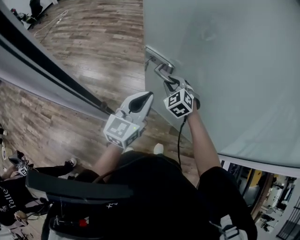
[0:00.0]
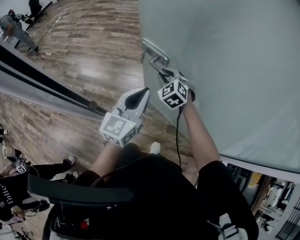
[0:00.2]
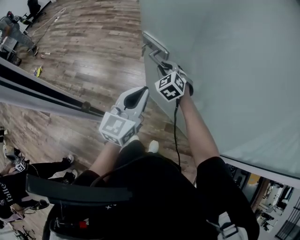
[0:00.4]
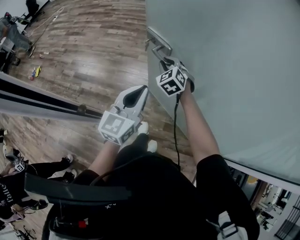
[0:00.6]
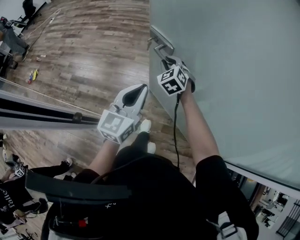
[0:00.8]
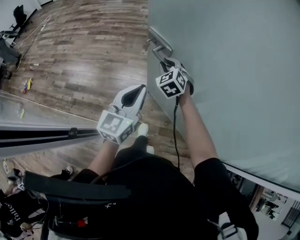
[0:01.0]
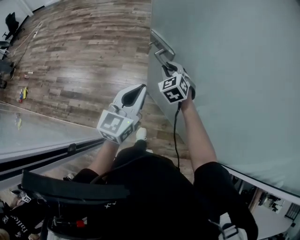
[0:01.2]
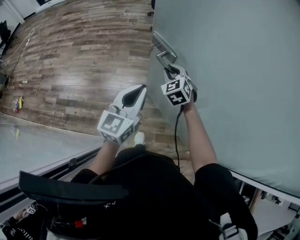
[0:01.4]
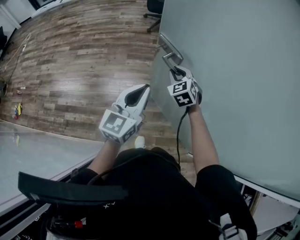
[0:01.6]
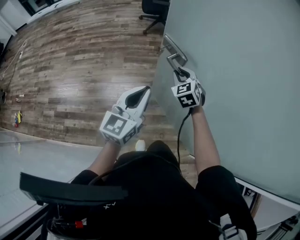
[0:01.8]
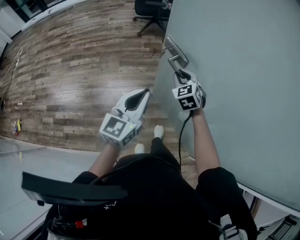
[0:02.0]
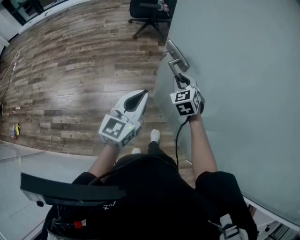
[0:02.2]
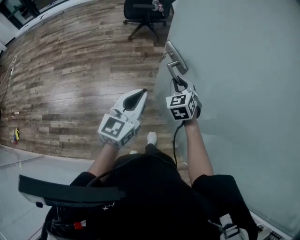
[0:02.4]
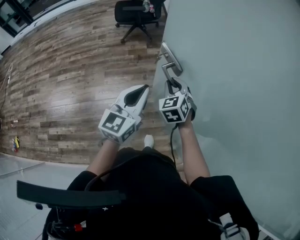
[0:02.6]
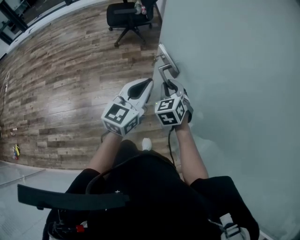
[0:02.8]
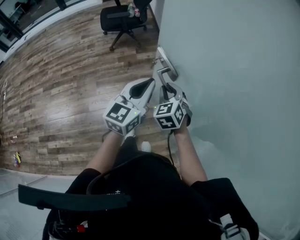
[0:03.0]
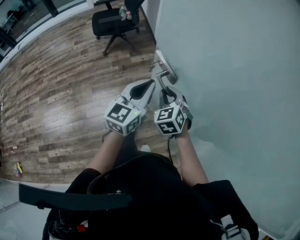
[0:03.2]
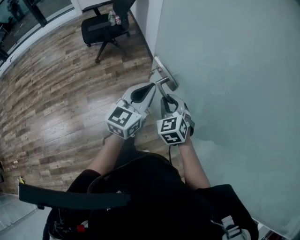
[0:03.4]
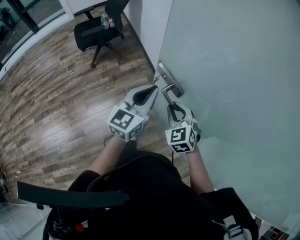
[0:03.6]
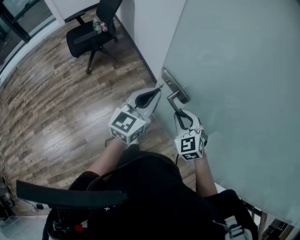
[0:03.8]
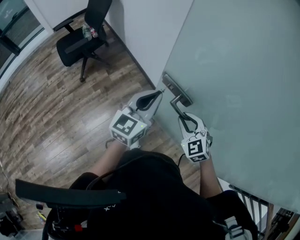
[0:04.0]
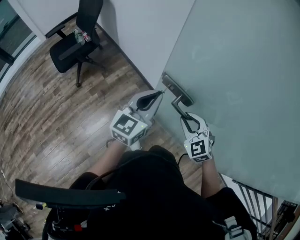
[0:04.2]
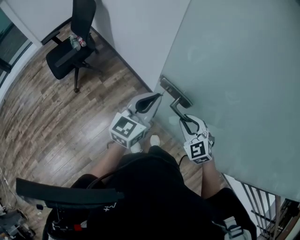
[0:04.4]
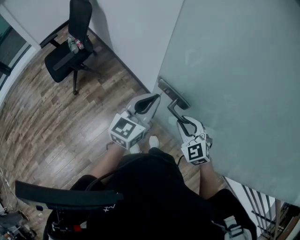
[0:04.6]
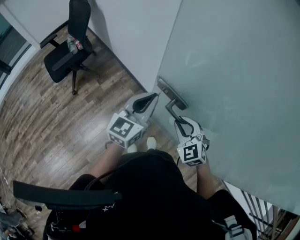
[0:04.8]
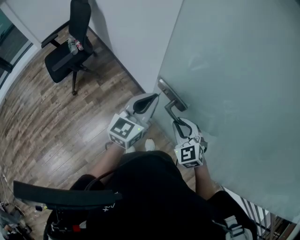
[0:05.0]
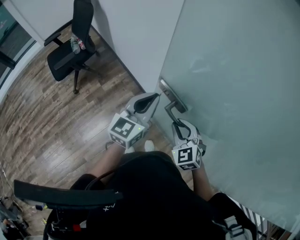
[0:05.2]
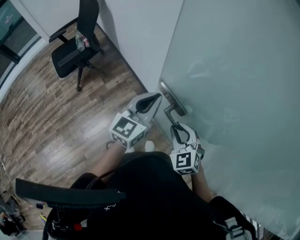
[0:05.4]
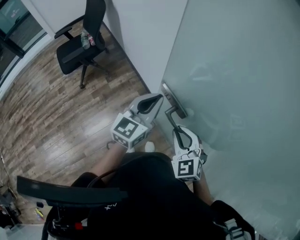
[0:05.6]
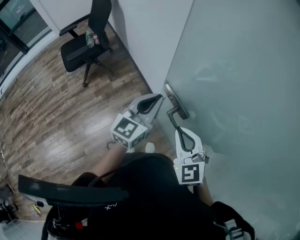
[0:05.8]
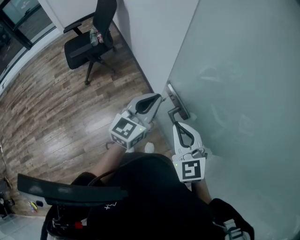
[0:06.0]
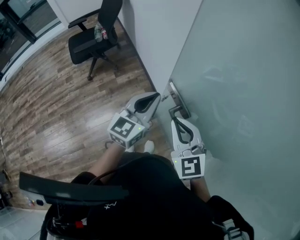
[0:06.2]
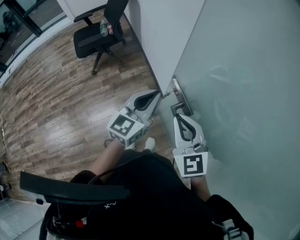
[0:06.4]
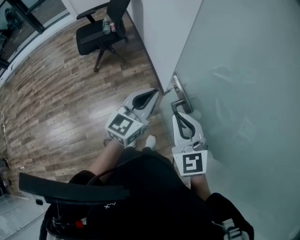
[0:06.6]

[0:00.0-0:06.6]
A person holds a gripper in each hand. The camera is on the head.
0:00.0 to 0:01.6: The two grippers go roughly 30 cm forward and to the right. The right gripper swivels approximately 20 degrees.
0:01.6 to 0:03.2: Both grippers move forward and to the right, about 30 cm. The left gripper rotates roughly 20 degrees. The right gripper rotates some 20 degrees.
0:03.2 to 0:05.0: The right gripper shifts some 10 cm to the right and forward; the left gripper travels forward by about 15 cm, and rotates roughly 30 degrees.
0:05.0 to 0:06.6: The right gripper travels upward by approximately 10 cm, and rotates about 30 degrees.

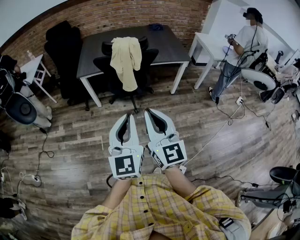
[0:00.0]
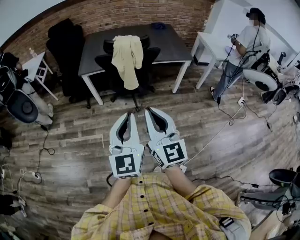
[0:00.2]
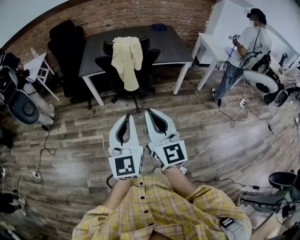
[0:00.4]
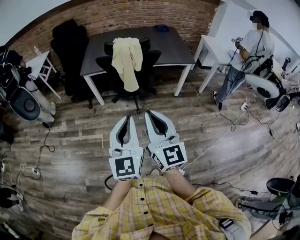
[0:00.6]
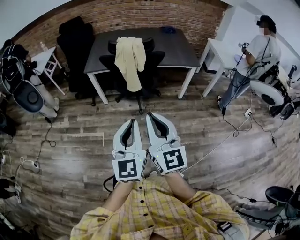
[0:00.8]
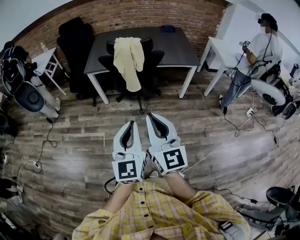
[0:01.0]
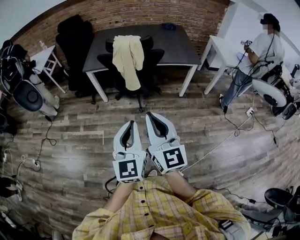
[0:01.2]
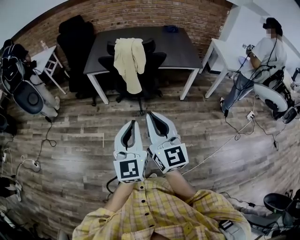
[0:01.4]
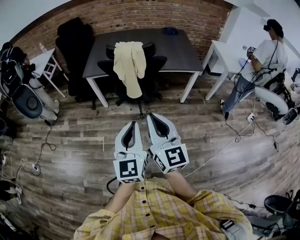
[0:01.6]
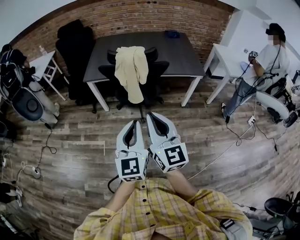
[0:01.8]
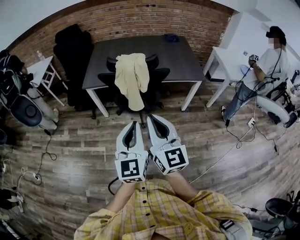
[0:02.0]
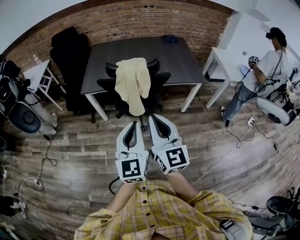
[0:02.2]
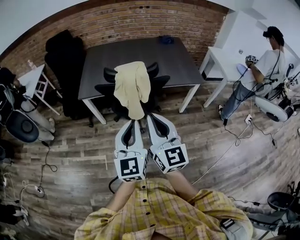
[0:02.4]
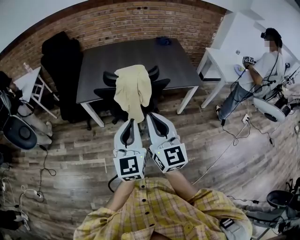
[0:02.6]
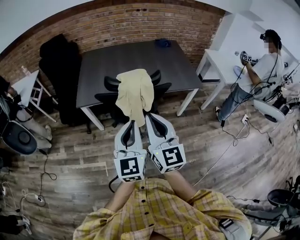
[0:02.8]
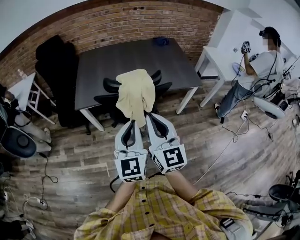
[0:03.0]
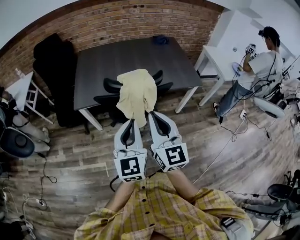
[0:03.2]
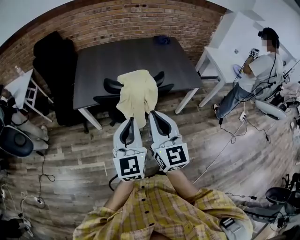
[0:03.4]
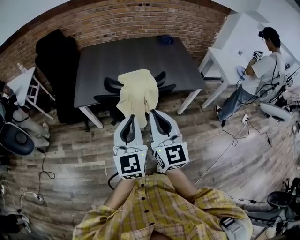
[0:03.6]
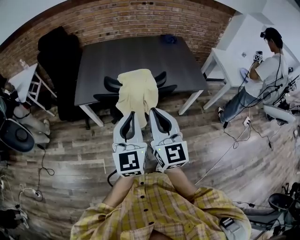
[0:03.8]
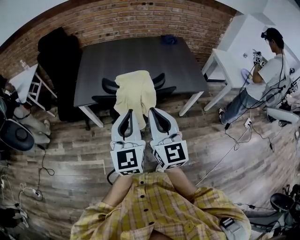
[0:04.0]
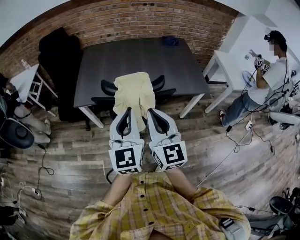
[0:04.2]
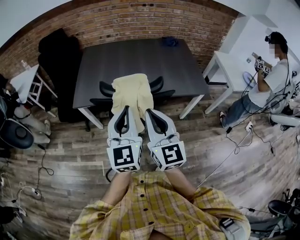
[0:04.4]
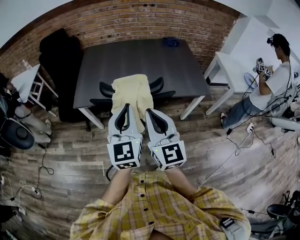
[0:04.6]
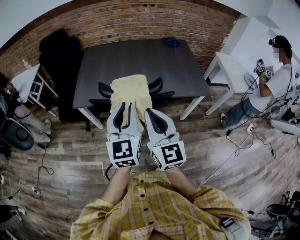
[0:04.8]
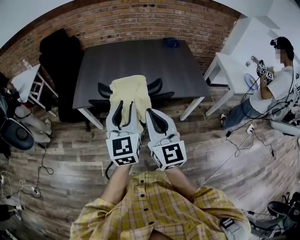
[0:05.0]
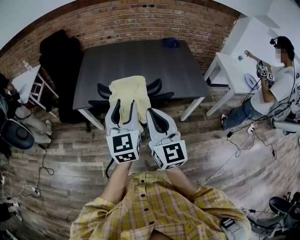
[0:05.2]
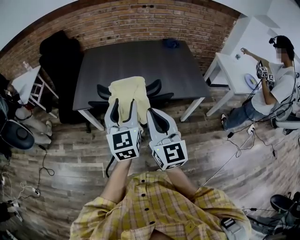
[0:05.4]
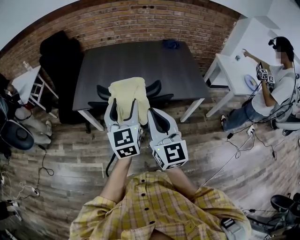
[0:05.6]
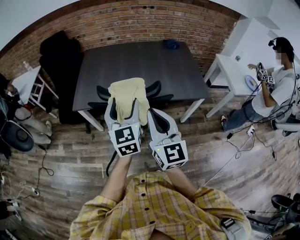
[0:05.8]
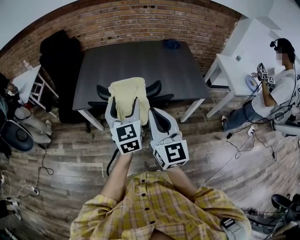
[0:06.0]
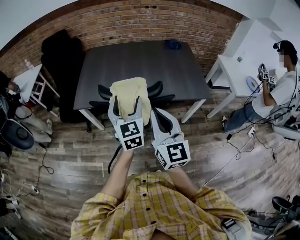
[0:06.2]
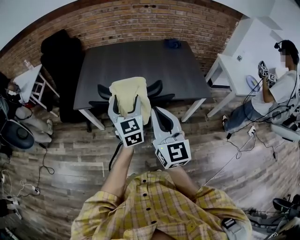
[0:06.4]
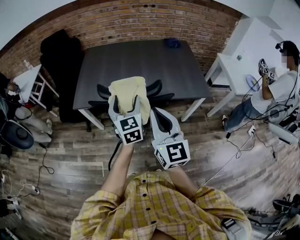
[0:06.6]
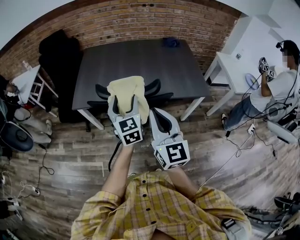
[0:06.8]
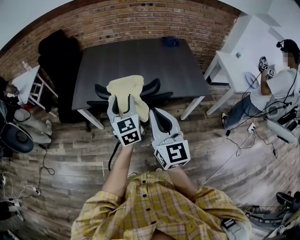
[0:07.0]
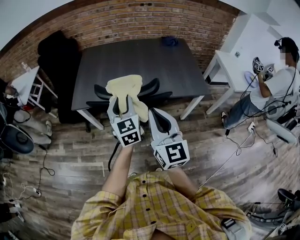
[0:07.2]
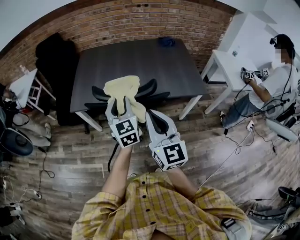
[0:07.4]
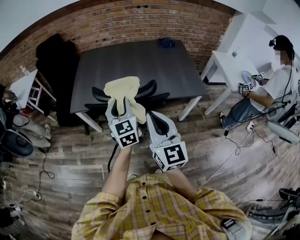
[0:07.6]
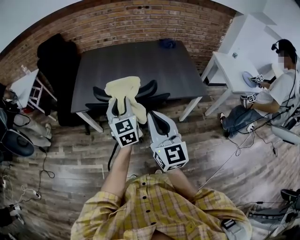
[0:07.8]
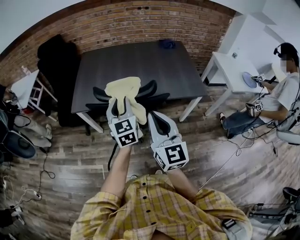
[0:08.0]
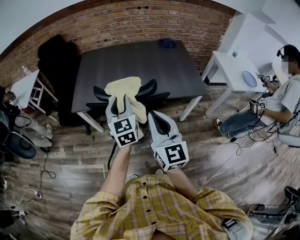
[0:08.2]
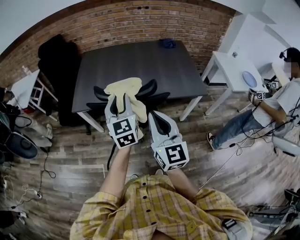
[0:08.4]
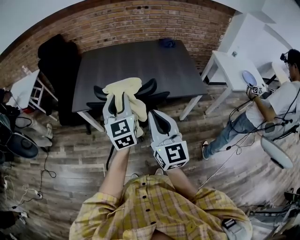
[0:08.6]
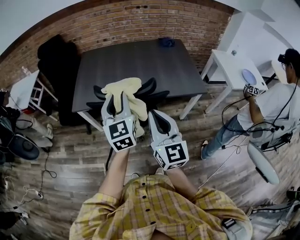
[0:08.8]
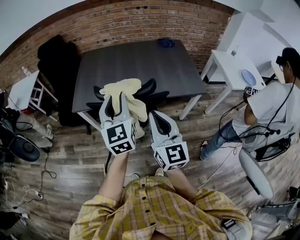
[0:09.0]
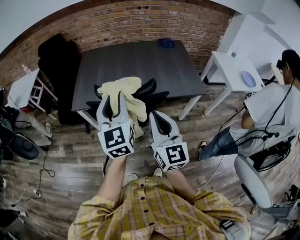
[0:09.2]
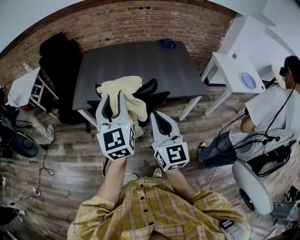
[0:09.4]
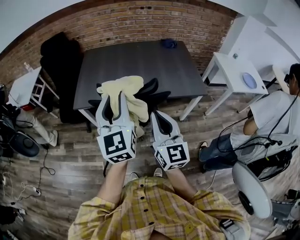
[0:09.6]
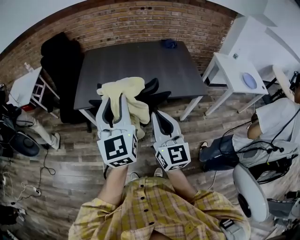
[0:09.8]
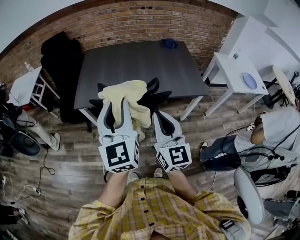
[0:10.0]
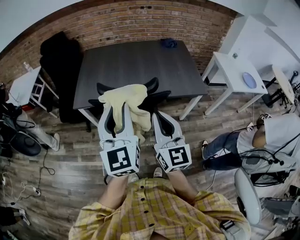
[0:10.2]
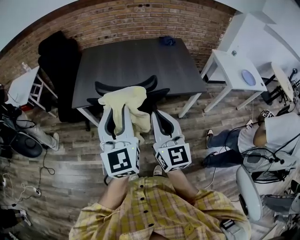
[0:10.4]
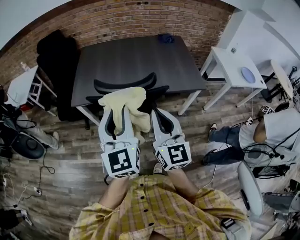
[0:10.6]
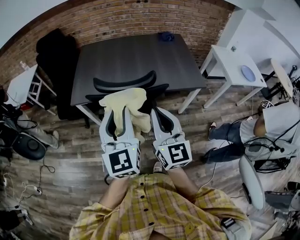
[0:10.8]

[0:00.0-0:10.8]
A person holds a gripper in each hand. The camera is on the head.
0:00.0 to 0:01.6: The grippers both shift to the right and forward by roughly 10 cm.
0:01.6 to 0:03.0: Both grippers travel together forward, some 25 cm.
0:03.0 to 0:04.6: Both grippers travel together forward, about 10 cm.
0:04.6 to 0:06.2: The left gripper travels forward by roughly 10 cm, and opens up.
0:06.2 to 0:07.8: The left gripper closes up.
0:07.8 to 0:09.2: The left gripper moves upward and backward, about 15 cm.
0:09.2 to 0:10.8: The left gripper travels backward by approximately 10 cm.

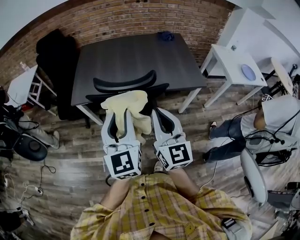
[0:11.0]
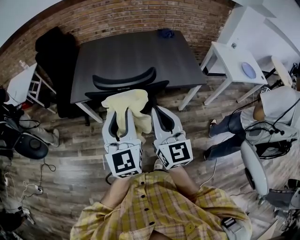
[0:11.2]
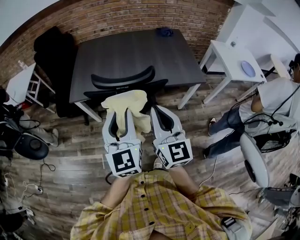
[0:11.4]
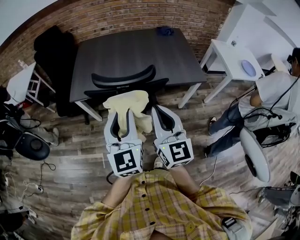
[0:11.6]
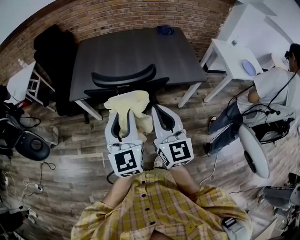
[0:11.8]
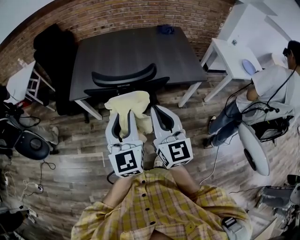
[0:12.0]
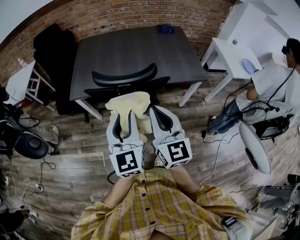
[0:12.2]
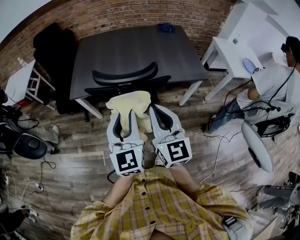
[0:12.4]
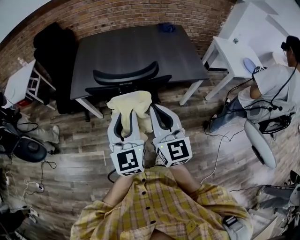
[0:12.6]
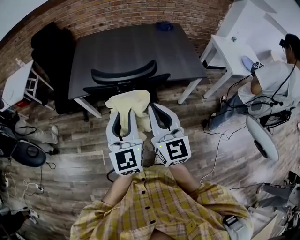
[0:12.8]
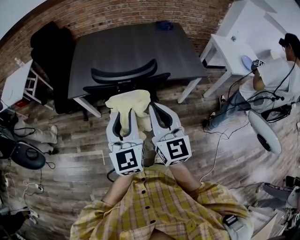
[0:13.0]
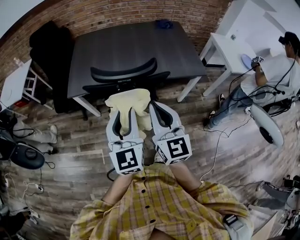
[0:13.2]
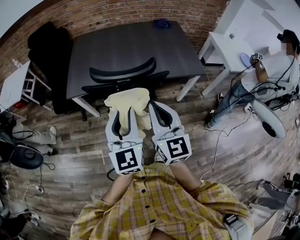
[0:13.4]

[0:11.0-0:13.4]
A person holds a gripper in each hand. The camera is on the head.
0:11.0 to 0:13.4: There are only small adjustments of the grippers.

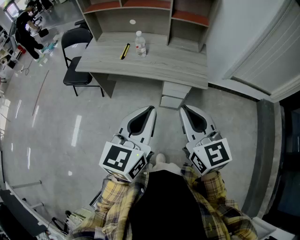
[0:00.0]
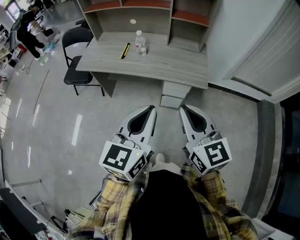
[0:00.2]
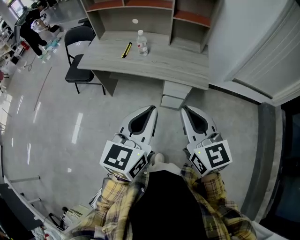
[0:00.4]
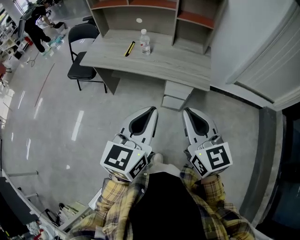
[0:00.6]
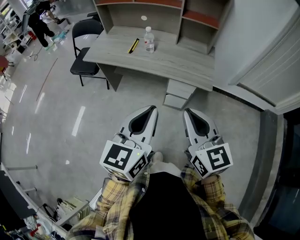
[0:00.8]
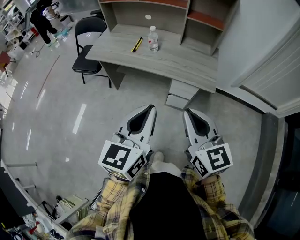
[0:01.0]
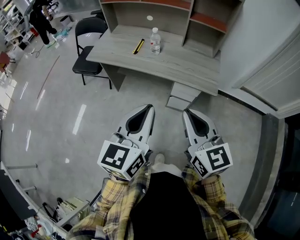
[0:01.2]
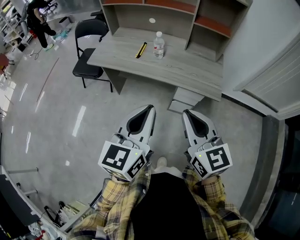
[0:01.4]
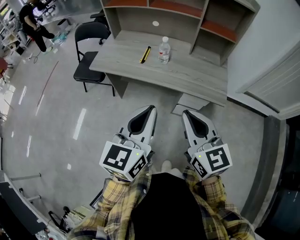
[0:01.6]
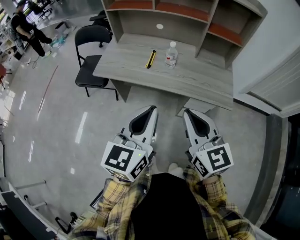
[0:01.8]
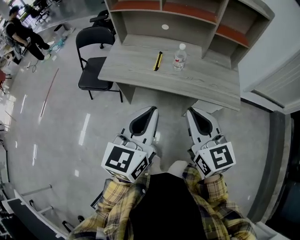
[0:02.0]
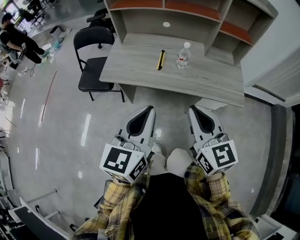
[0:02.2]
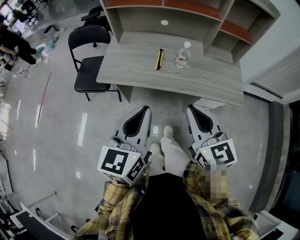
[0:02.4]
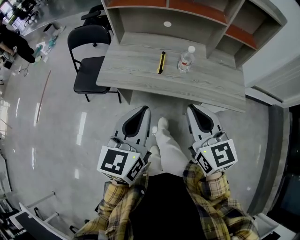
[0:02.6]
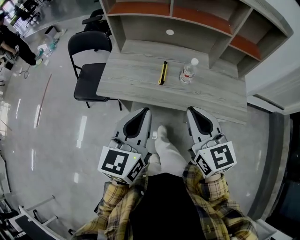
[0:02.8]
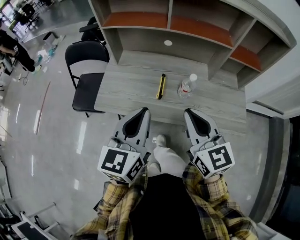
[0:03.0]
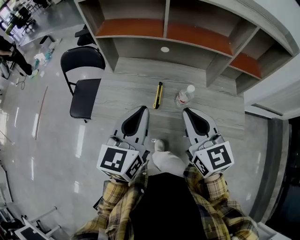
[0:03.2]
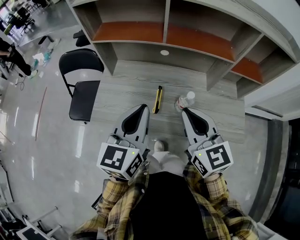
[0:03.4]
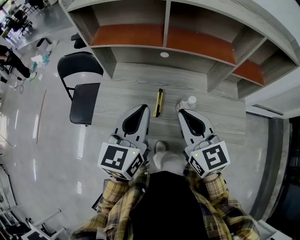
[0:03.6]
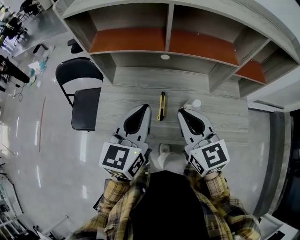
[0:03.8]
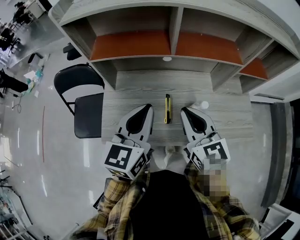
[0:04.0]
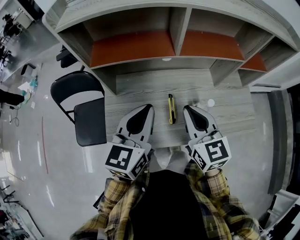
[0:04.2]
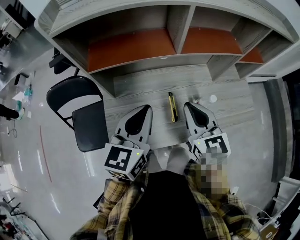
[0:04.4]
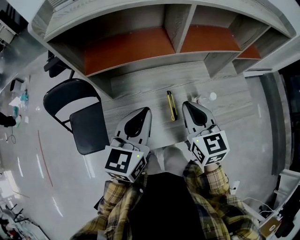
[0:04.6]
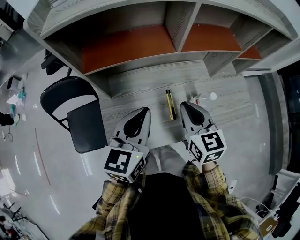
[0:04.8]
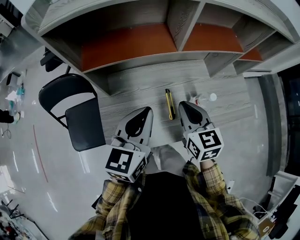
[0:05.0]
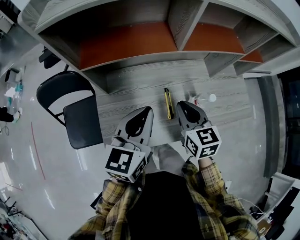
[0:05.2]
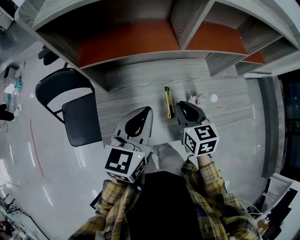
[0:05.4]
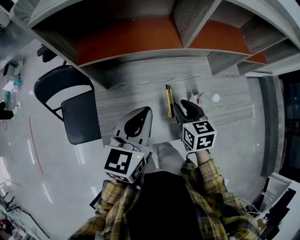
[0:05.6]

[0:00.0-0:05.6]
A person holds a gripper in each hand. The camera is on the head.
0:00.0 to 0:01.4: The right gripper ends up some 5 cm from where it was. Meanwhile the left gripper shifts roughly 5 cm to the left.
0:01.4 to 0:02.8: The grippers both shift forward and to the left by some 30 cm.
0:02.8 to 0:04.2: The two grippers go some 25 cm forward.
0:04.2 to 0:05.6: The right gripper goes some 15 cm downward, and swivels approximately 30 degrees. Meanwhile the left gripper moves downward, approximately 5 cm.
